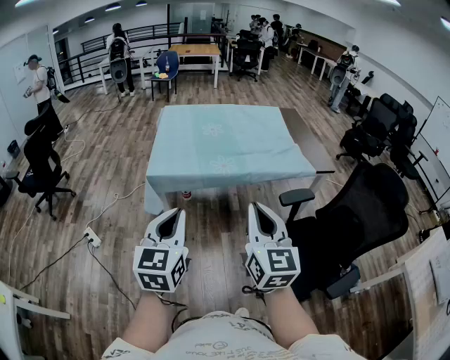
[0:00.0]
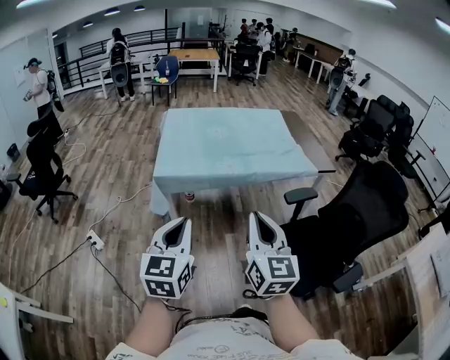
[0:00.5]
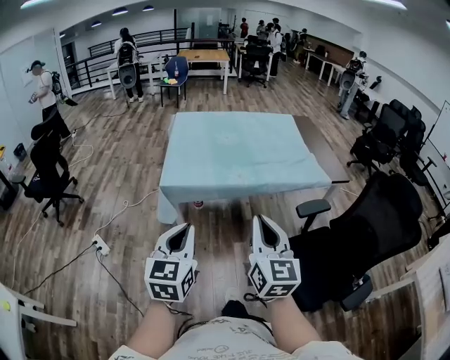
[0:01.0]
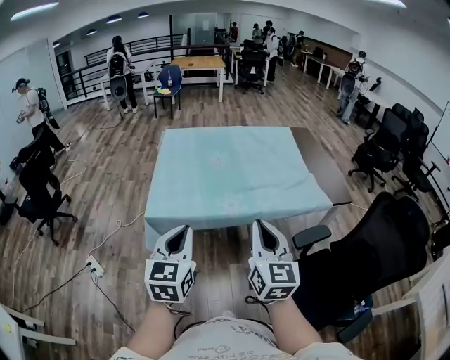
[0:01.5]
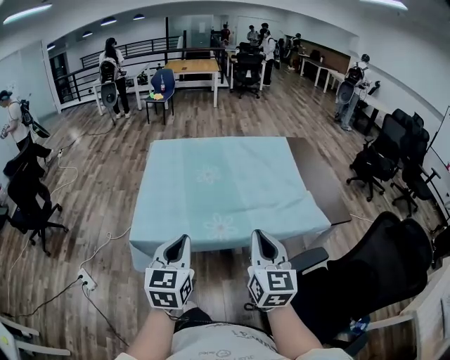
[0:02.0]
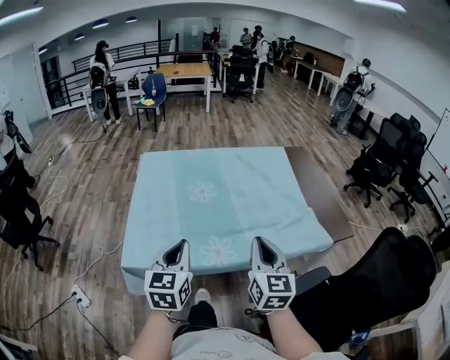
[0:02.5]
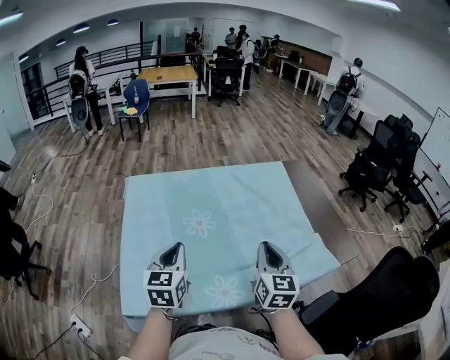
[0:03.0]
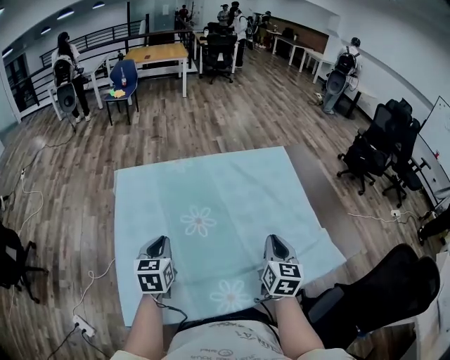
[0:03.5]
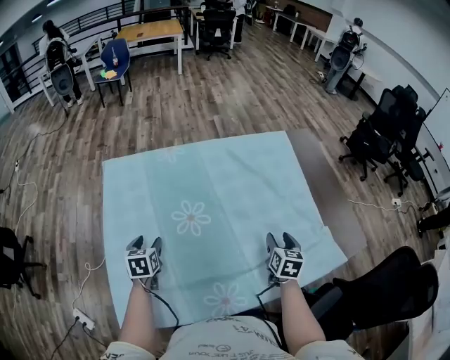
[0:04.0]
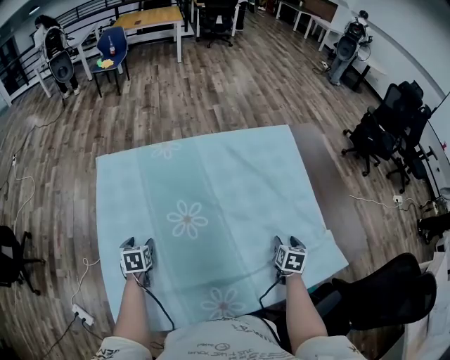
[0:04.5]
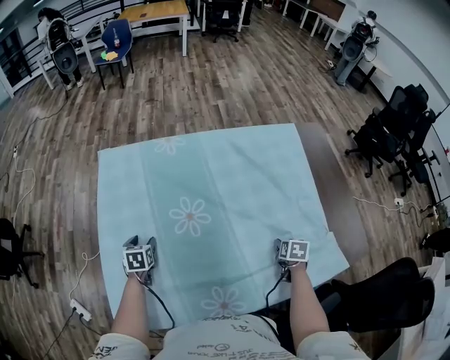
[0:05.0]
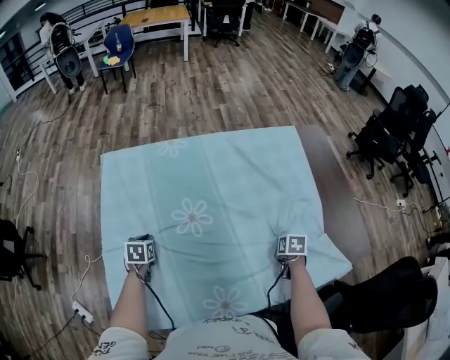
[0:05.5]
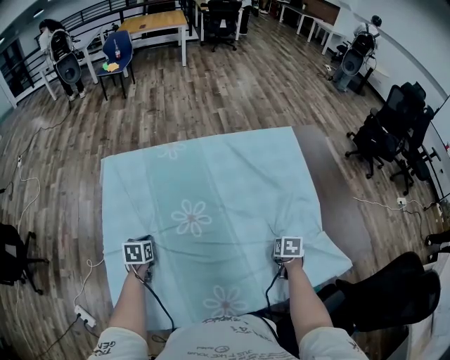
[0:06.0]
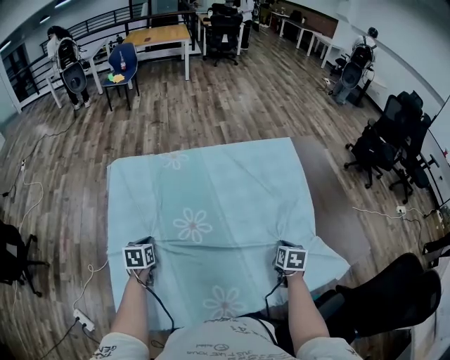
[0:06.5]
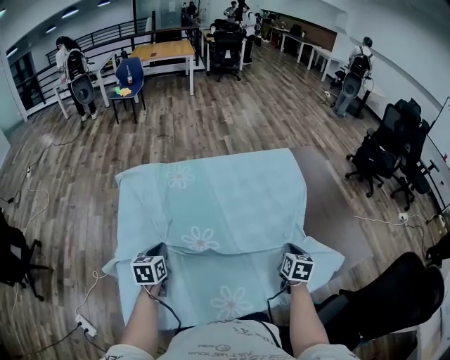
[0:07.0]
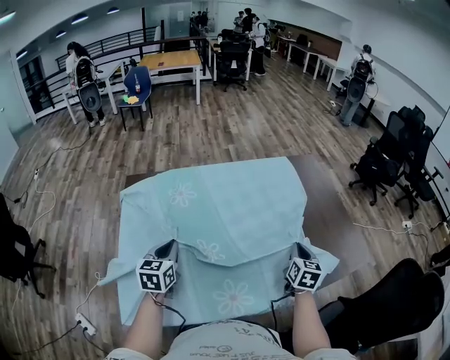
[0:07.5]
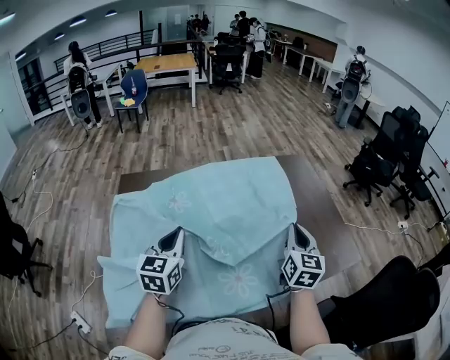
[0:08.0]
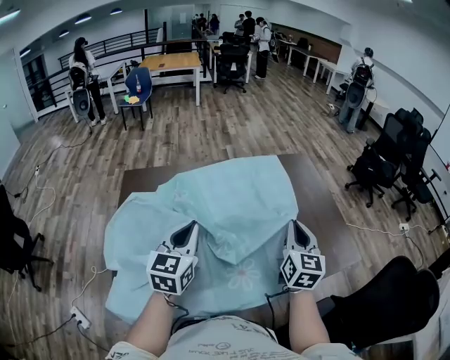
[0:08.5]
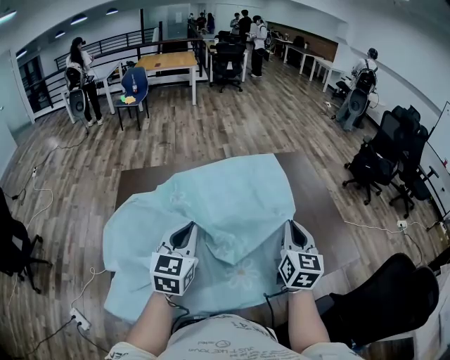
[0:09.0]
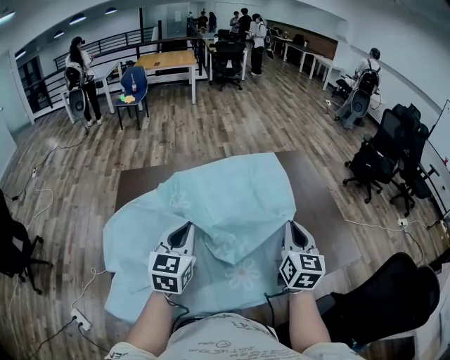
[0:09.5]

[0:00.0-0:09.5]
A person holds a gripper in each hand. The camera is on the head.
0:00.0 to 0:02.0: The two grippers go about 30 cm forward.
0:02.0 to 0:04.0: Both grippers are carried forward, about 40 cm. The grippers both shift downward by roughly 25 cm. The left gripper angles its fingers downward, by roughly 30 degrees, and opens, while the right gripper tips its fingers downward by approximately 30 degrees, and opens up.
0:04.0 to 0:05.5: Both grippers move downward, approximately 10 cm. The right gripper tips its fingers downward by some 30 degrees, and closes up. The left gripper closes up.
0:05.5 to 0:07.5: The right gripper travels upward by approximately 20 cm, and tips its fingers upward by some 40 degrees, while the left gripper shifts some 25 cm upward and to the right, and tilts its fingers some 30 degrees upward.
0:07.5 to 0:09.5: The right gripper travels upward by approximately 15 cm, and changes its angle by roughly 20 degrees; the left gripper shifts some 15 cm upward and to the right.

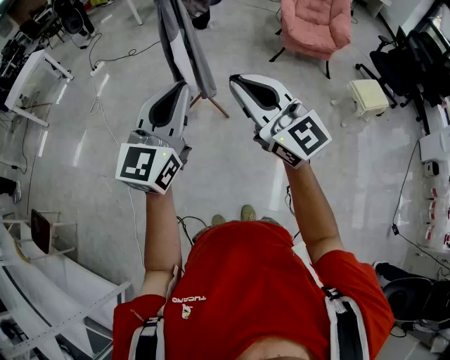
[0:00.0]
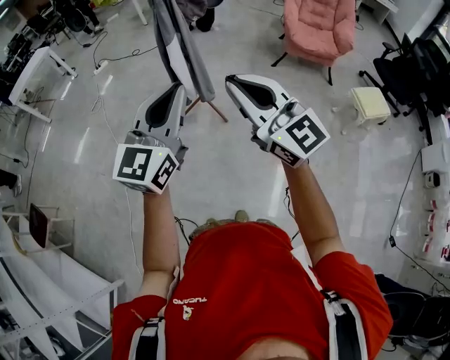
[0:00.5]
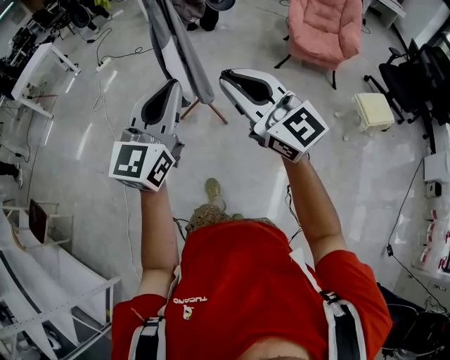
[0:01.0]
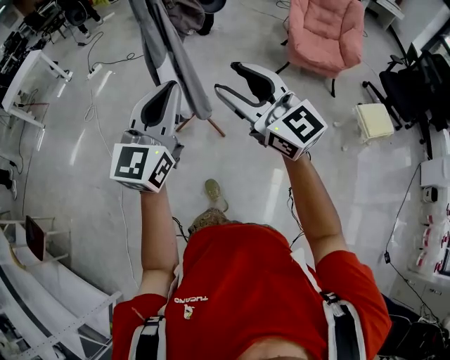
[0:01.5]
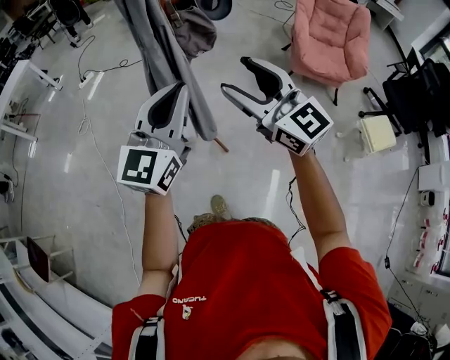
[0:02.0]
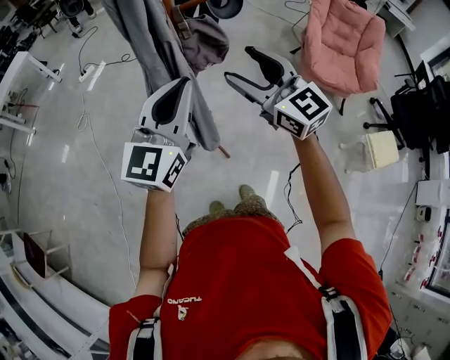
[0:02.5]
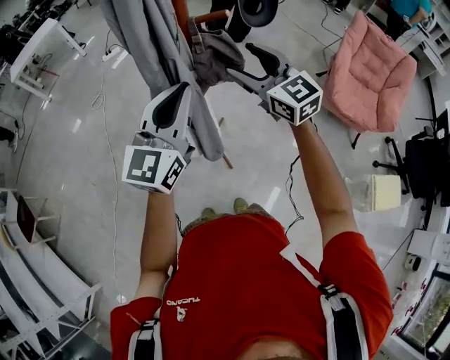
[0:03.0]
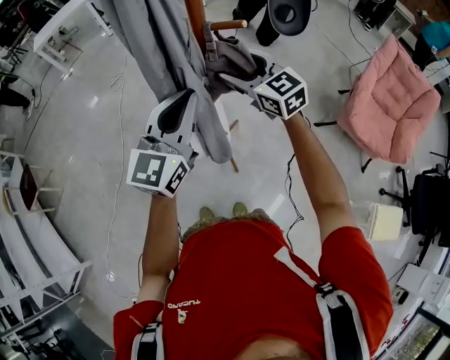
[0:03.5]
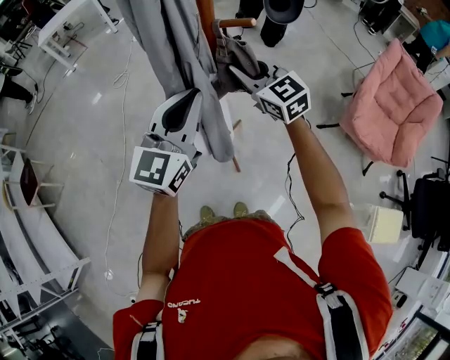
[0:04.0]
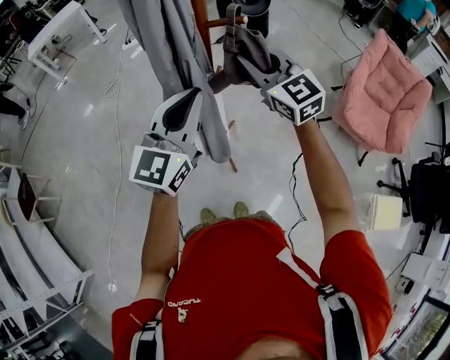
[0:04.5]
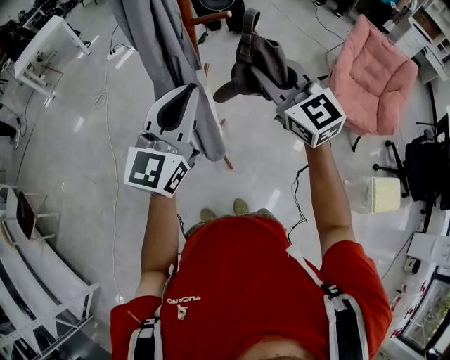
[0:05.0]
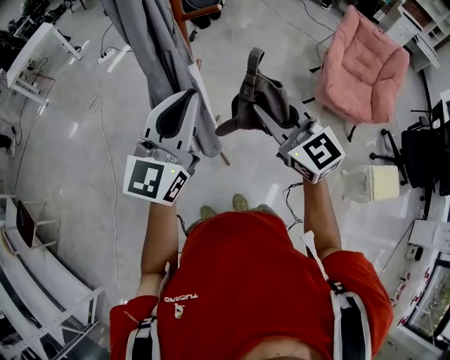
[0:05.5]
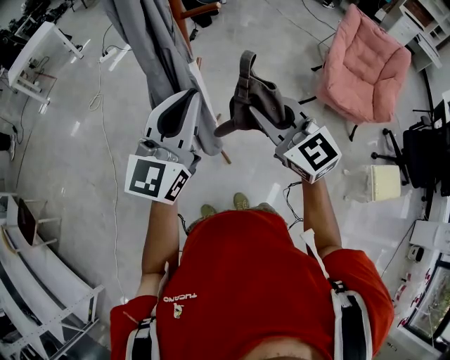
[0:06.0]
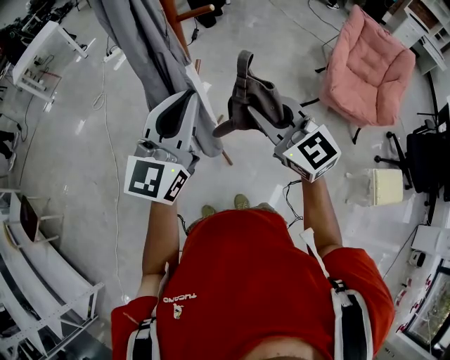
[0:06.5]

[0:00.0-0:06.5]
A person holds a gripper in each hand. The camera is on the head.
0:00.0 to 0:02.0: Both grippers travel together forward, approximately 30 cm. The right gripper opens its fingers.
0:02.0 to 0:04.5: The right gripper moves forward, about 25 cm, changes its angle by some 20 degrees, and closes. Meanwhile the left gripper is displaced forward by roughly 15 cm.
0:04.5 to 0:06.5: The left gripper is displaced backward by about 5 cm. The right gripper travels backward by some 15 cm.

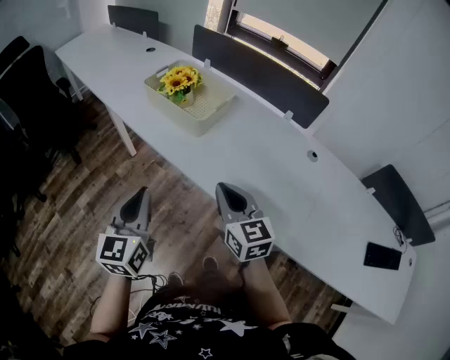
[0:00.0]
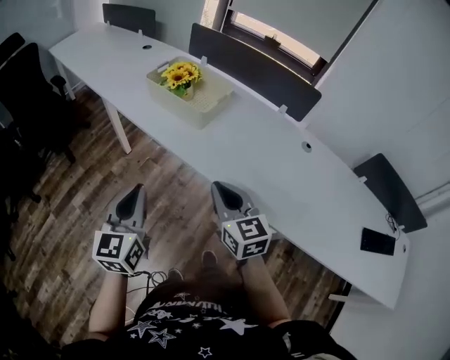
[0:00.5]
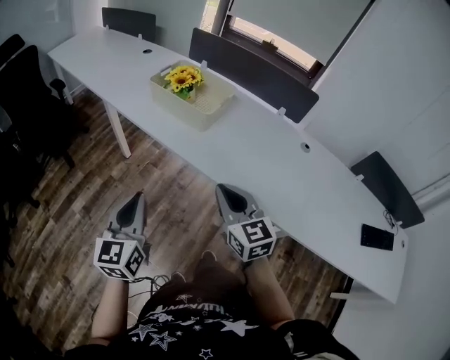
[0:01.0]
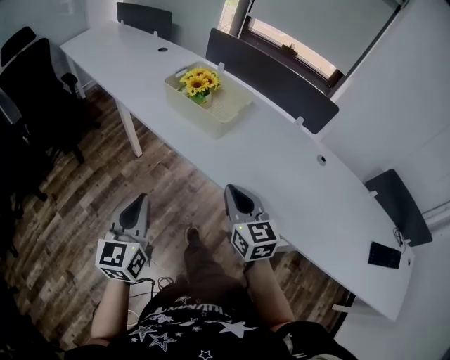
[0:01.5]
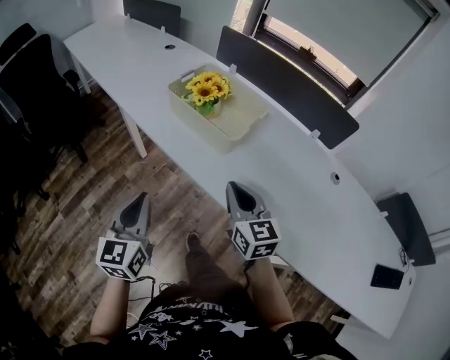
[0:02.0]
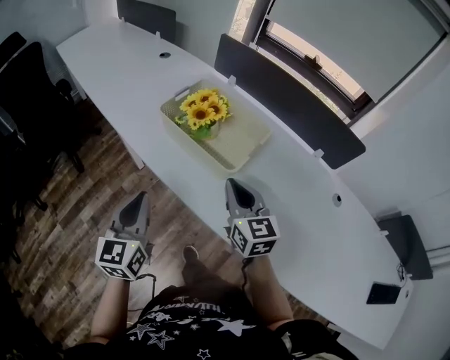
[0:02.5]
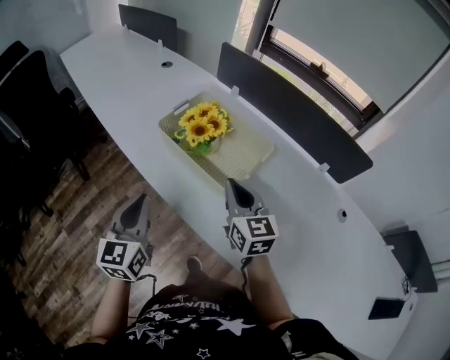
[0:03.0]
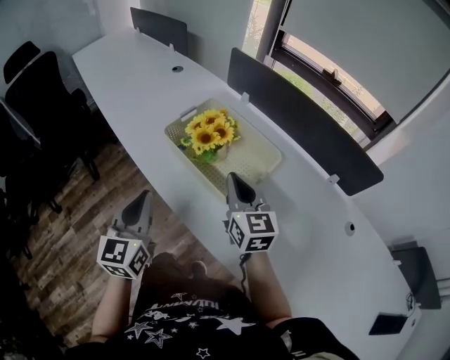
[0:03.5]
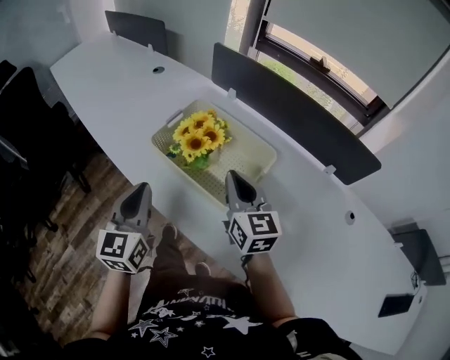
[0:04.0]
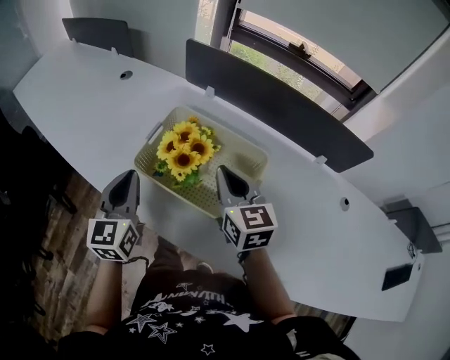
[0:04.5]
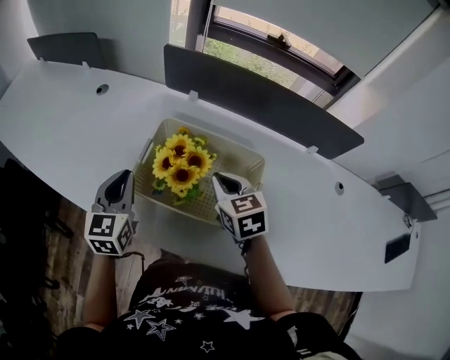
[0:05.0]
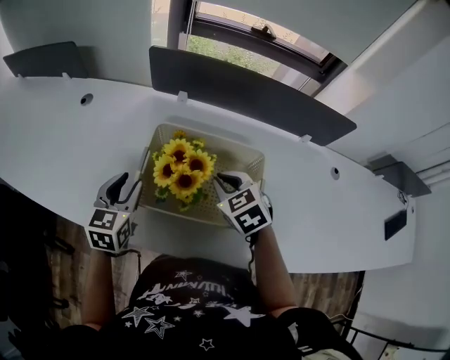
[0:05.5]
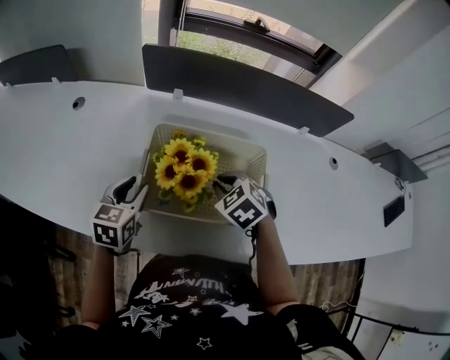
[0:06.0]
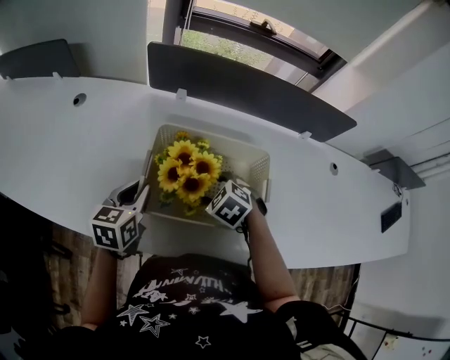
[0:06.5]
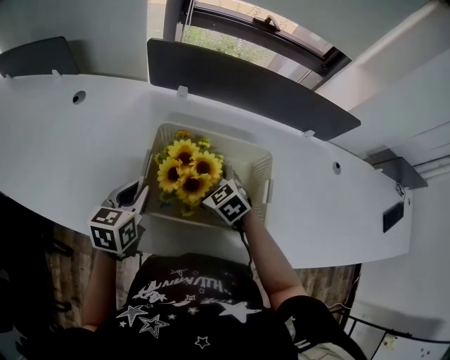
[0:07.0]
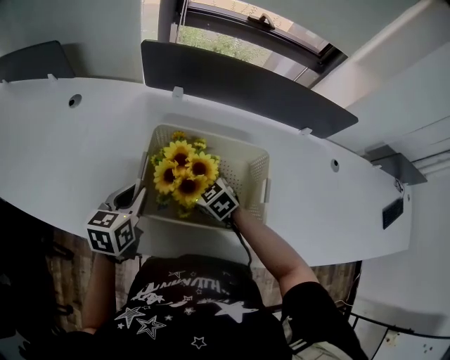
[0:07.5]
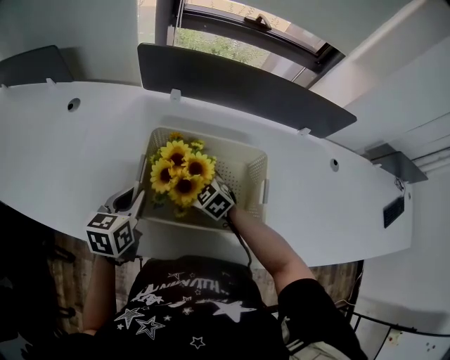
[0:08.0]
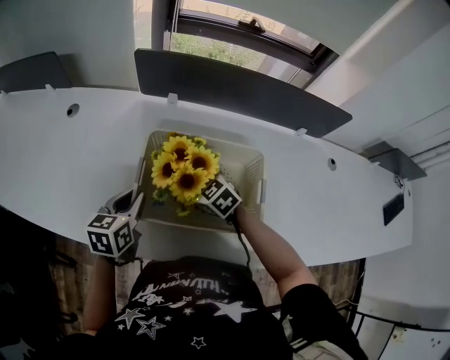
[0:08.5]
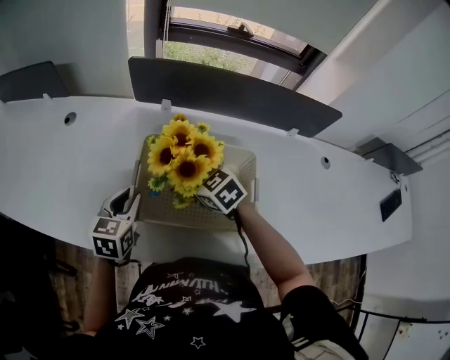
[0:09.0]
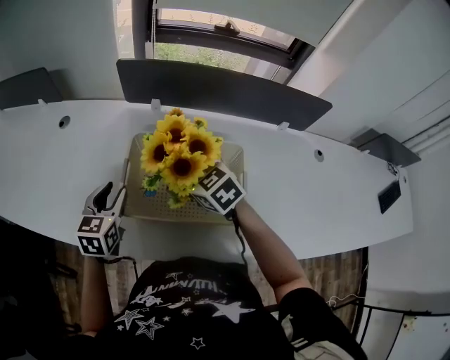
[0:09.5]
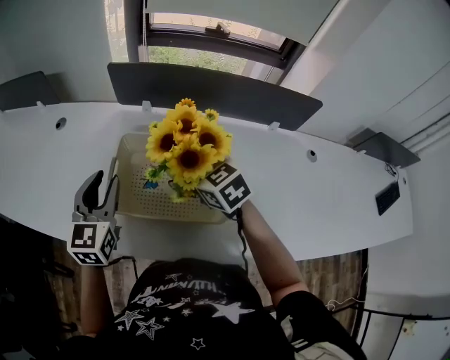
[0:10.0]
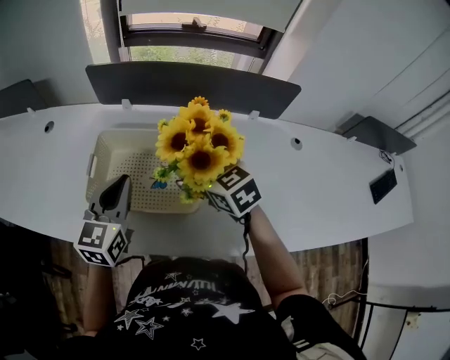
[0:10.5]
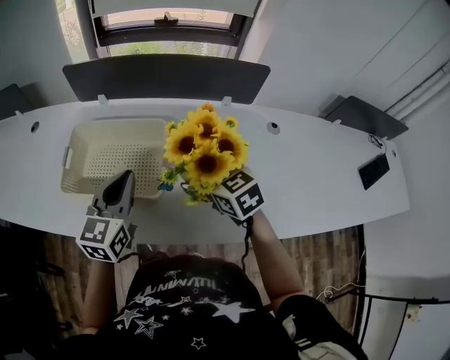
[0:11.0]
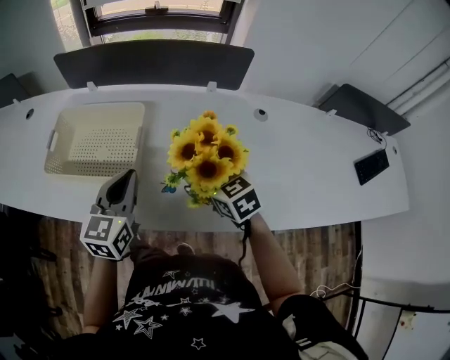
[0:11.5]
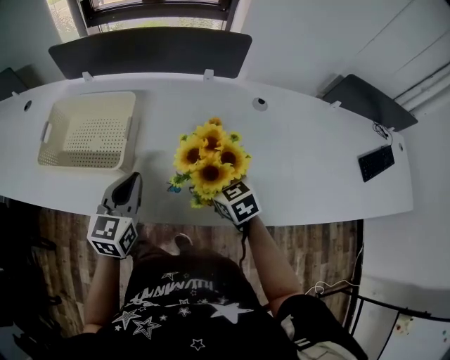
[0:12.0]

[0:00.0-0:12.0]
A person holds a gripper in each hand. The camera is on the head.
0:00.0 to 0:02.0: The right gripper heads forward and to the left, covering roughly 15 cm. Meanwhile the left gripper shifts approximately 15 cm to the left and forward.
0:02.0 to 0:04.0: The two grippers go some 25 cm forward.
0:04.0 to 0:06.0: The right gripper travels downward by roughly 10 cm, and angles its fingers downward, by approximately 50 degrees; the left gripper moves some 25 cm, turns by approximately 50 degrees, and opens its fingers.
0:06.0 to 0:08.0: The right gripper heads downward and to the left, covering about 15 cm, and opens.
0:08.0 to 0:10.0: The left gripper goes roughly 15 cm upward, and rotates about 30 degrees; the right gripper is displaced upward and to the right by about 20 cm.
0:10.0 to 0:12.0: The grippers both shift to the right and backward by approximately 35 cm. The left gripper closes.
